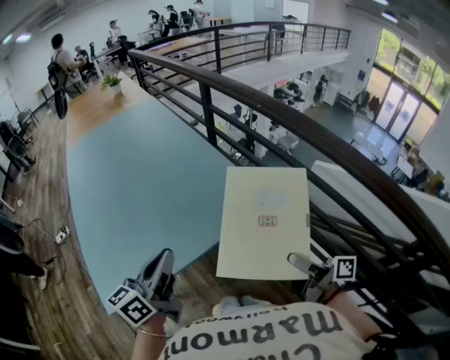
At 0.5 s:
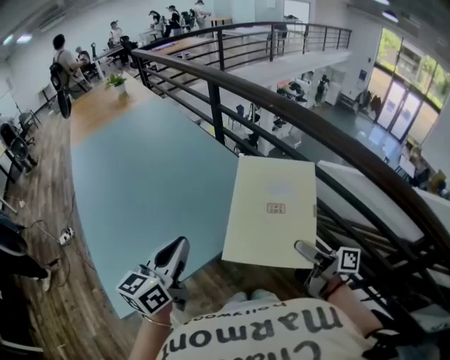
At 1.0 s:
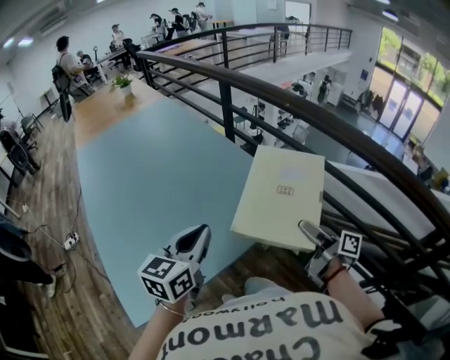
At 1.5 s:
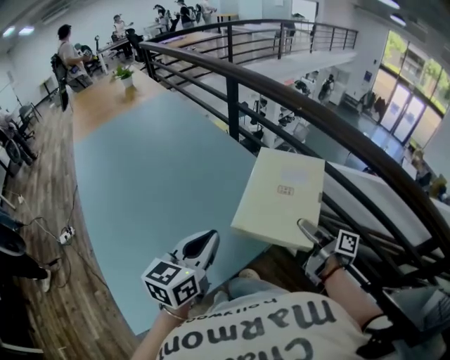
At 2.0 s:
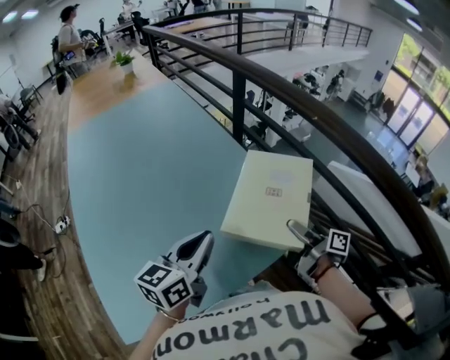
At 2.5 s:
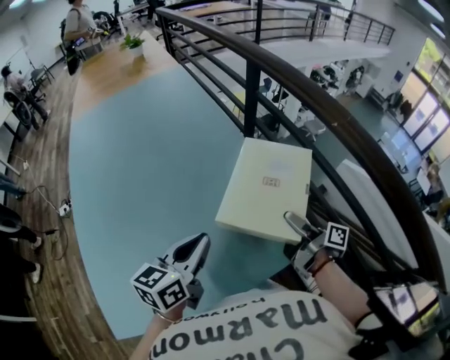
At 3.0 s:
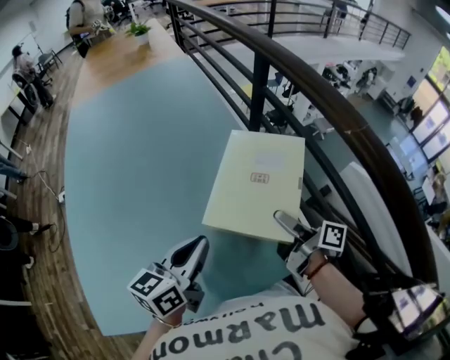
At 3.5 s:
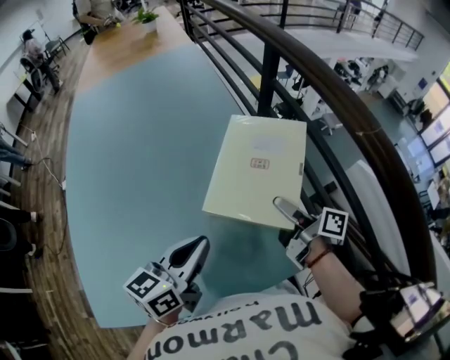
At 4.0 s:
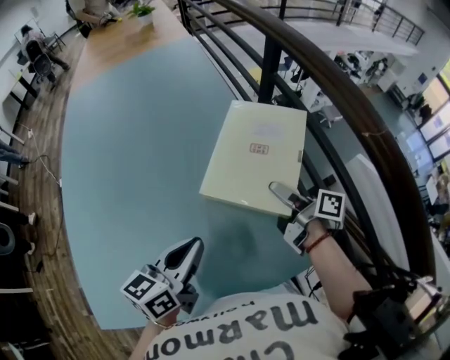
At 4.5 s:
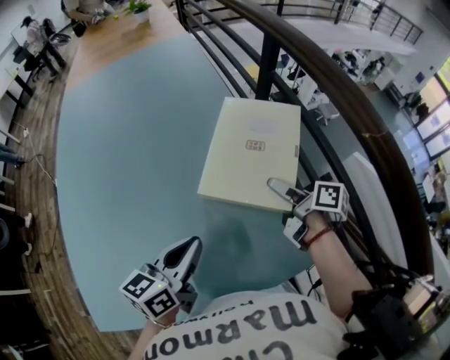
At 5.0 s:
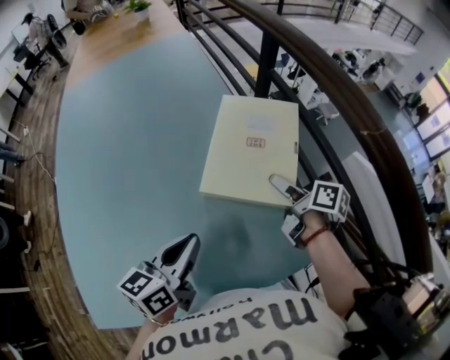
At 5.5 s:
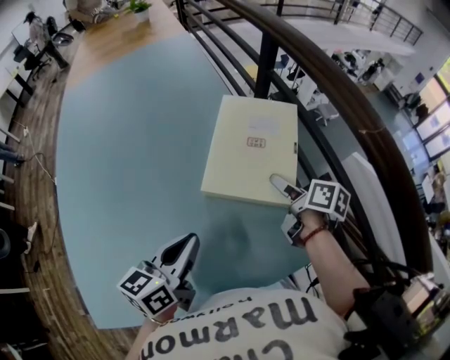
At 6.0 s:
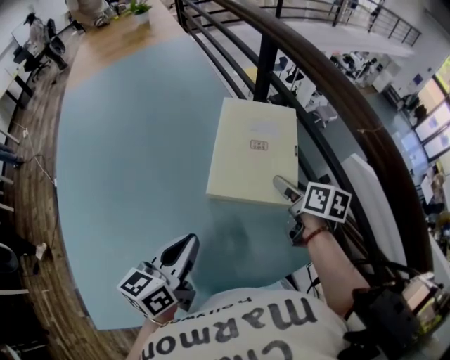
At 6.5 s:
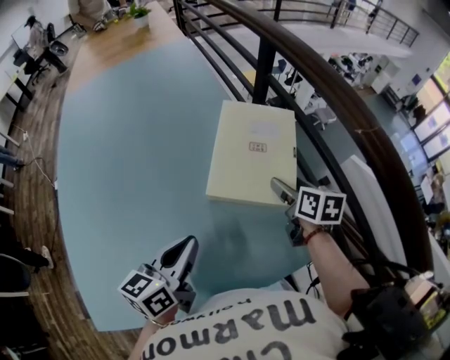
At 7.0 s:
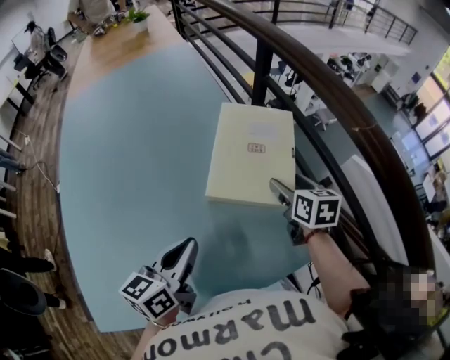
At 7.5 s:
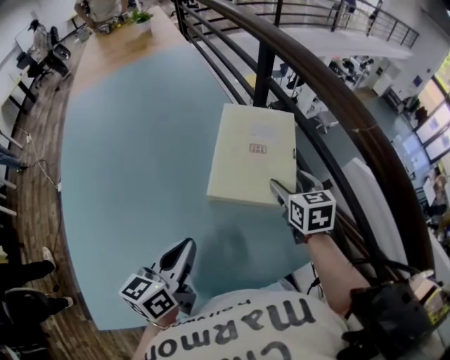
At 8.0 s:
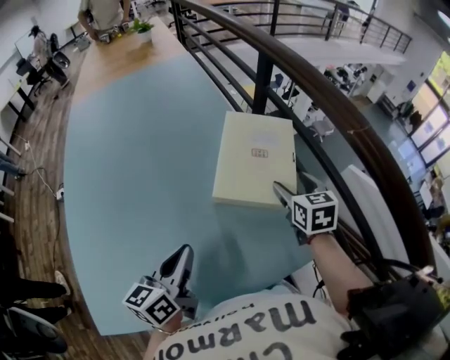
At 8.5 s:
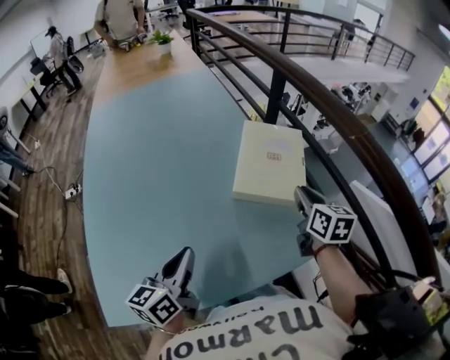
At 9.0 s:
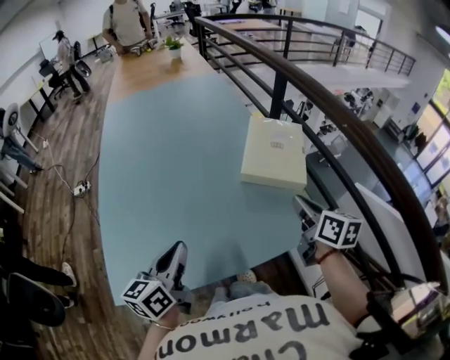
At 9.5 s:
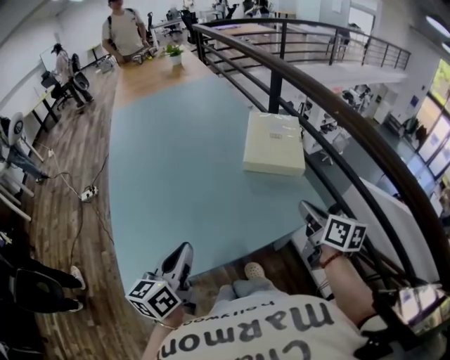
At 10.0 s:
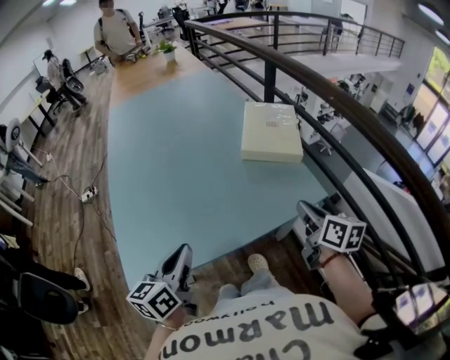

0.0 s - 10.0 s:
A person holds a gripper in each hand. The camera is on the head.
0.0 s - 2.0 s: The grippers both shift forward by approximately 20 cm.
2.0 s - 4.0 s: The right gripper moves forward, about 20 cm; the left gripper goes about 10 cm forward and downward.
4.0 s - 6.0 s: The right gripper is displaced to the right by approximately 5 cm, and rotates about 40 degrees.
6.0 s - 8.0 s: The right gripper changes its angle by roughly 40 degrees.
8.0 s - 10.0 s: The left gripper moves backward and to the left, about 25 cm; the right gripper goes some 30 cm backward, changes its angle by roughly 30 degrees, and closes its fingers.

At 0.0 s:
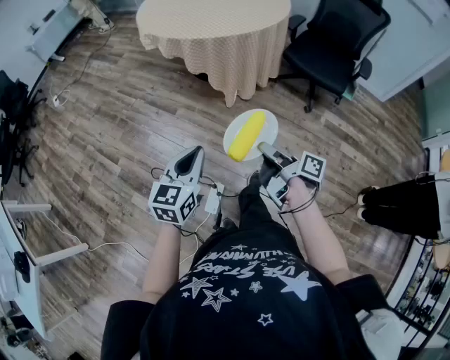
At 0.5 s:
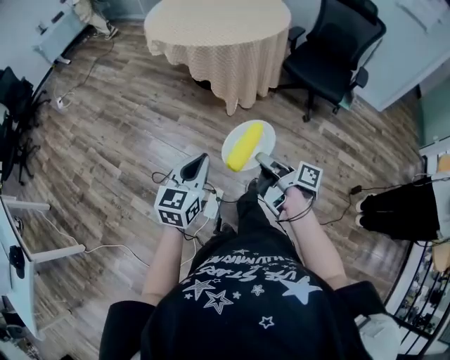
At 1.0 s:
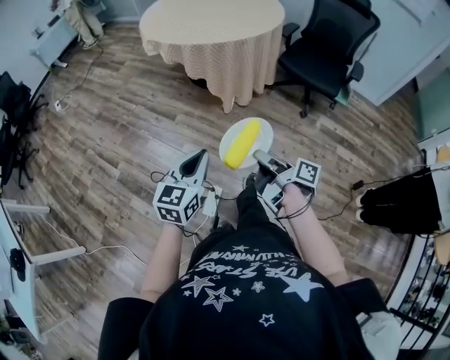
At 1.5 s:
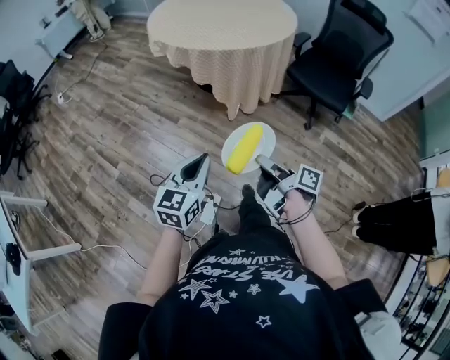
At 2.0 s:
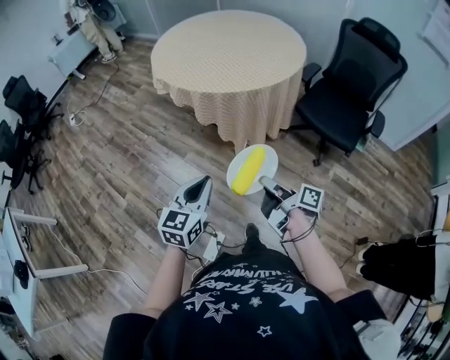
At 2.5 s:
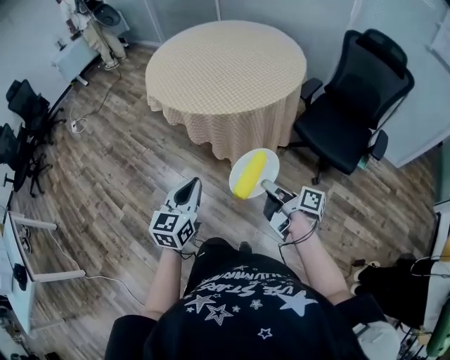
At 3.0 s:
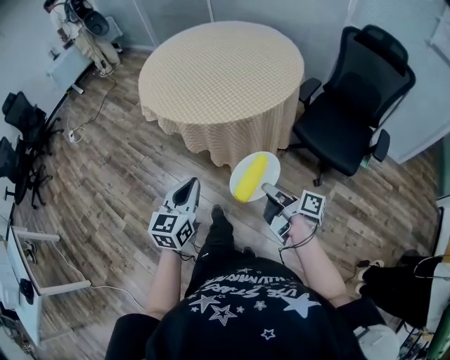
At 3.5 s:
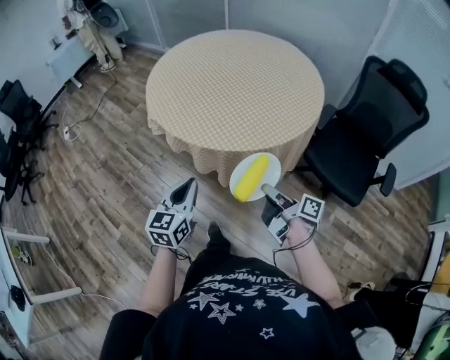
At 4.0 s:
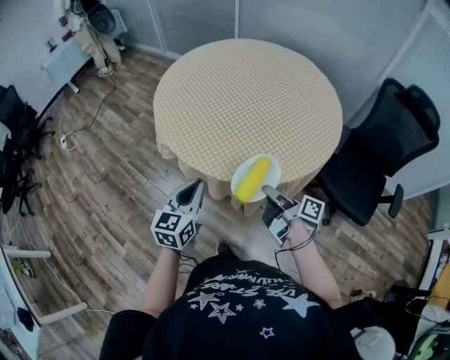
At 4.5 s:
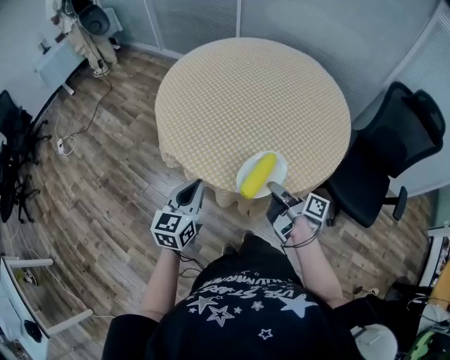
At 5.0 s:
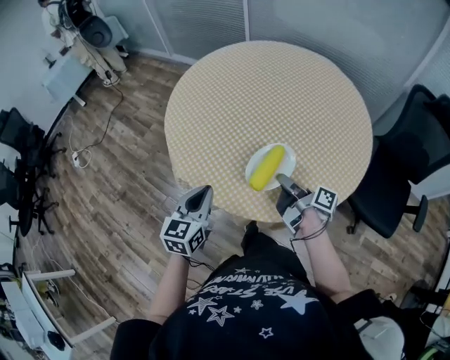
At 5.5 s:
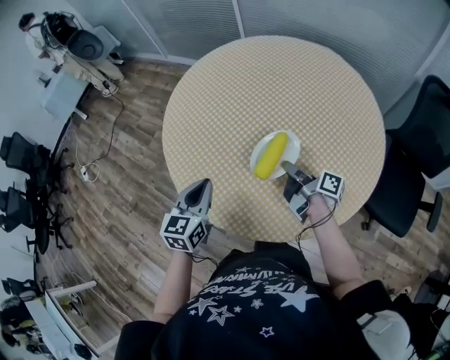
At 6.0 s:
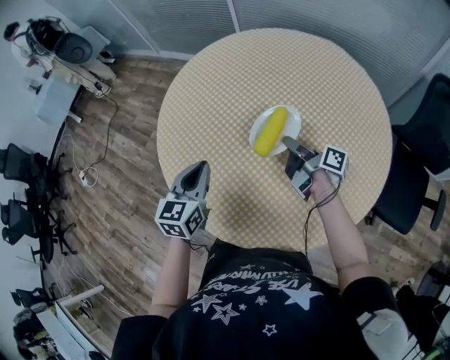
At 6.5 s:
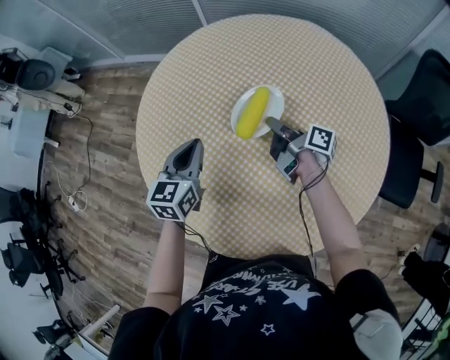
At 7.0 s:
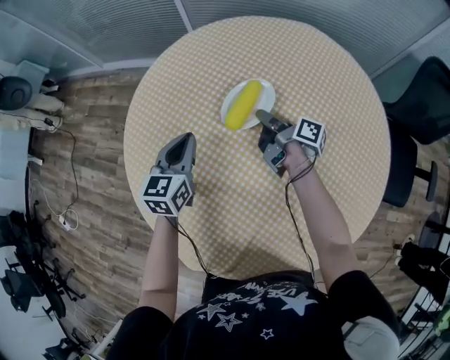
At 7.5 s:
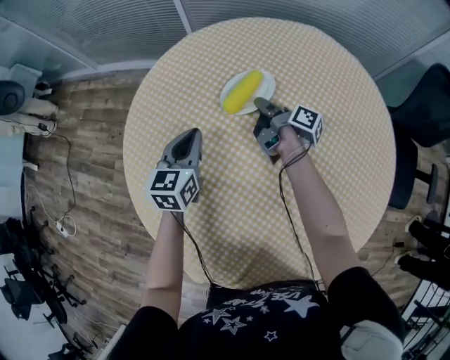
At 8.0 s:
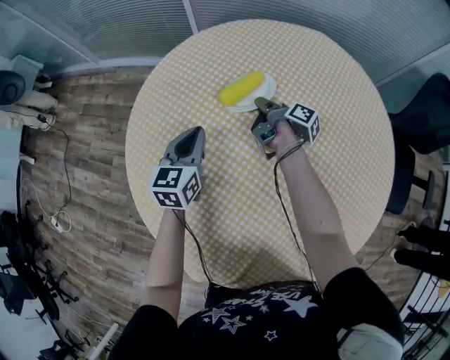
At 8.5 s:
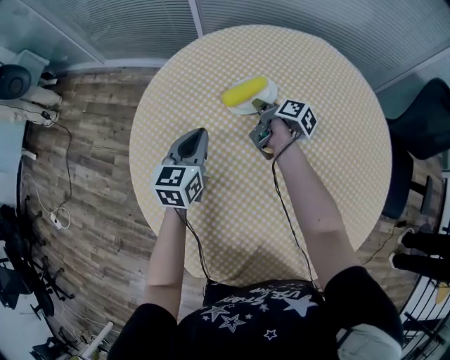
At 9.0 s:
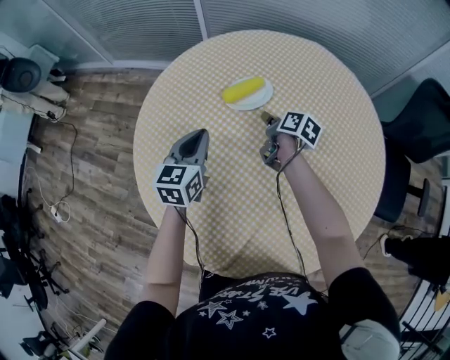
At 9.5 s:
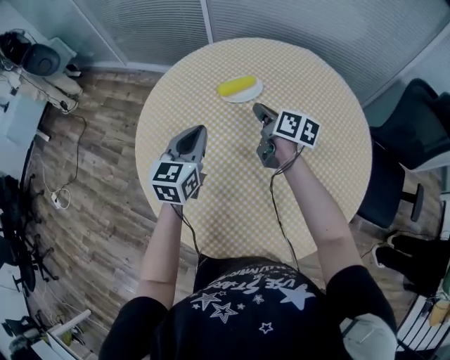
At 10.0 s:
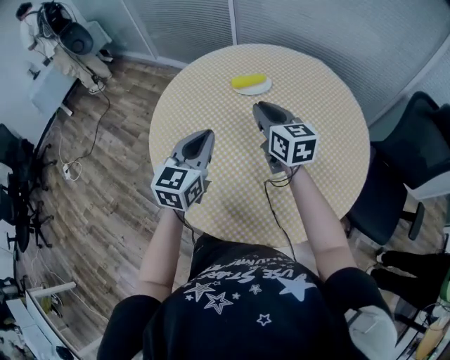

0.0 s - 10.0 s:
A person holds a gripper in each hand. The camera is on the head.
0.0 s - 2.0 s: Both grippers move forward, about 10 cm.
2.0 s - 4.0 s: Both grippers are carried forward, some 40 cm.
4.0 s - 6.0 s: Both grippers travel together forward, some 40 cm.
6.0 s - 8.0 s: Both grippers travel together forward, approximately 30 cm. The right gripper rotates about 30 degrees.
8.0 s - 10.0 s: The left gripper goes approximately 30 cm backward and upward, while the right gripper is displaced upward and backward by some 35 cm, and rolls counterclockwise, seen from behind, by about 80 degrees.

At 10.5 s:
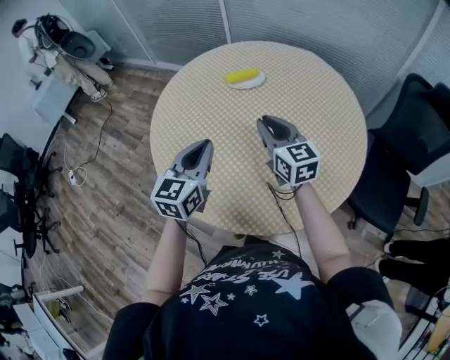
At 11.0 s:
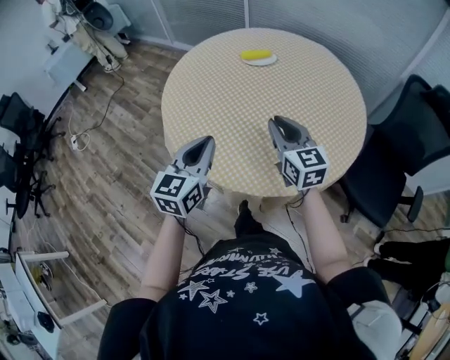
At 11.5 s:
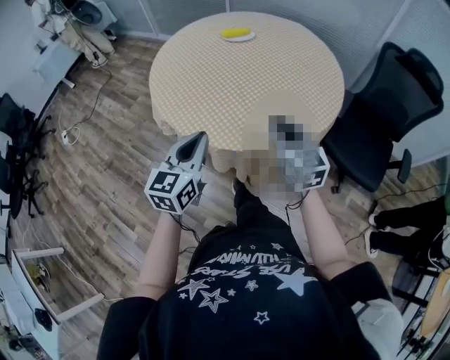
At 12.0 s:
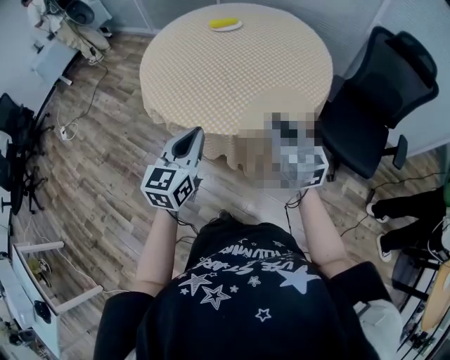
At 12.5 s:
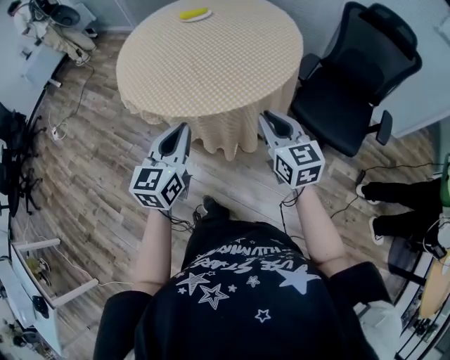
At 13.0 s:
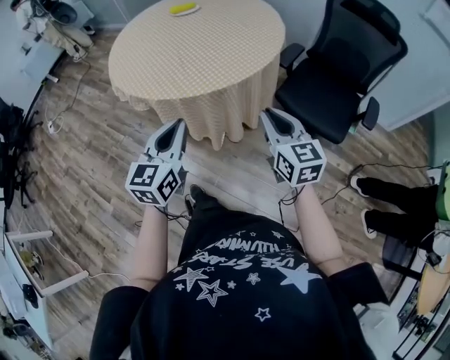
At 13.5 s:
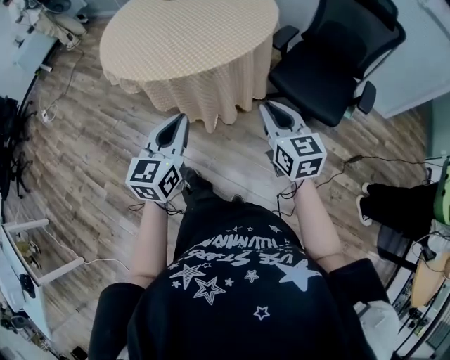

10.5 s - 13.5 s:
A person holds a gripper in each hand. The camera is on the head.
10.5 s - 12.0 s: The two grippers go about 35 cm backward.
12.0 s - 13.5 s: The two grippers go about 25 cm to the right and backward.

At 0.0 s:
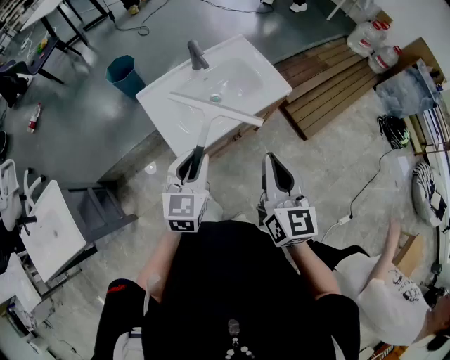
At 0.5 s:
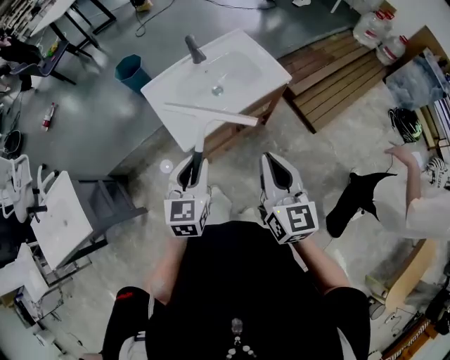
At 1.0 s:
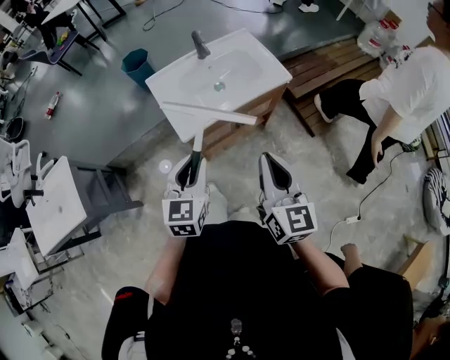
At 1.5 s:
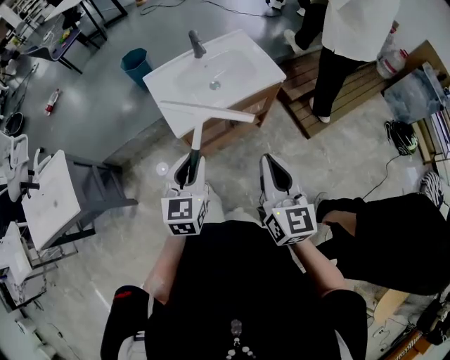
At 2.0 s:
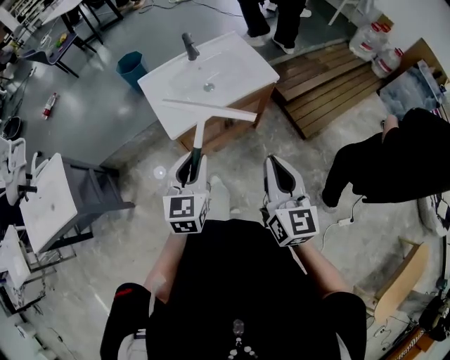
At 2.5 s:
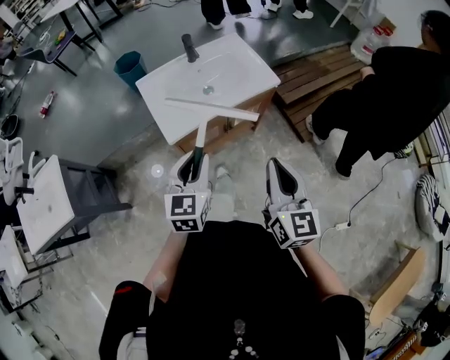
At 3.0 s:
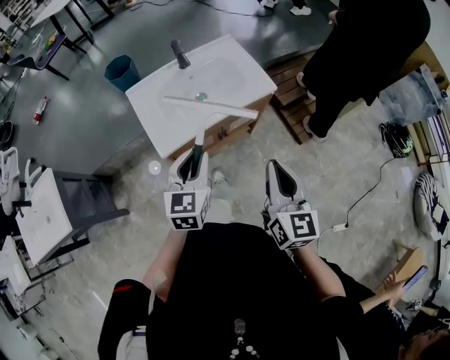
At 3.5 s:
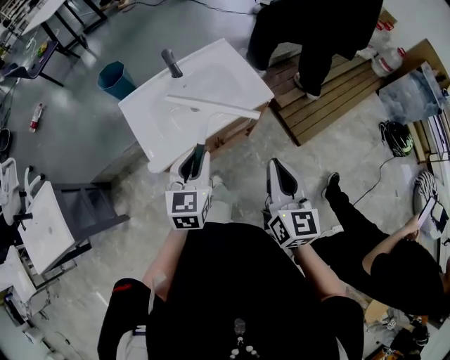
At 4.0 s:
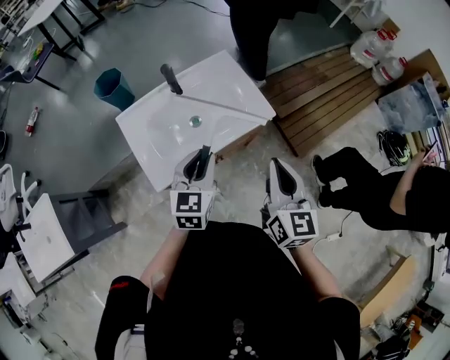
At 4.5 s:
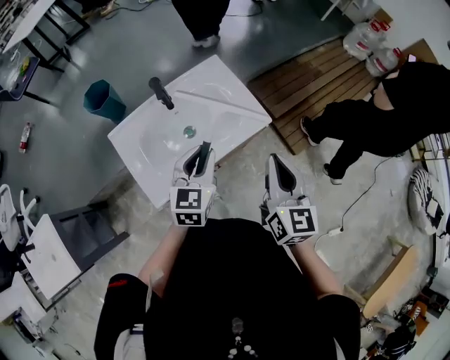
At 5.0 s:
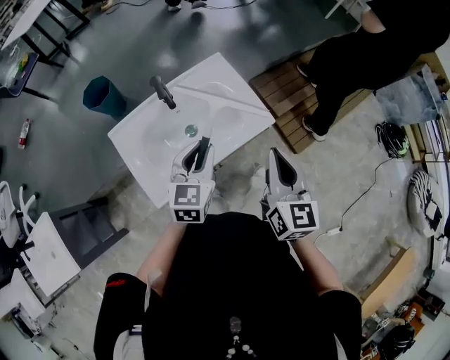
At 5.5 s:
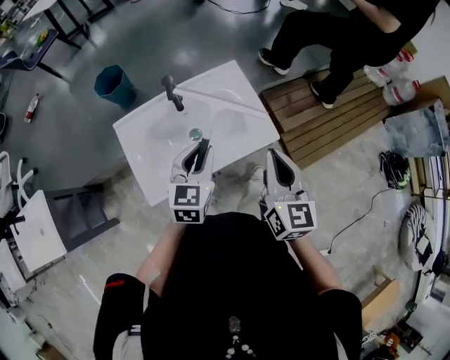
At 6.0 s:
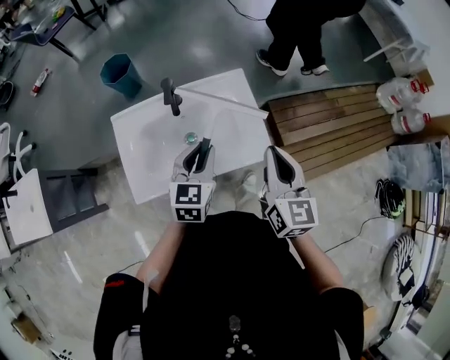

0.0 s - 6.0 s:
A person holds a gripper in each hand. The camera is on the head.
0.0 s - 2.0 s: Both grippers move backward and to the right, roughly 15 cm.
2.0 s - 4.0 s: The two grippers go about 25 cm forward.
4.0 s - 6.0 s: Both grippers move forward, approximately 20 cm.
